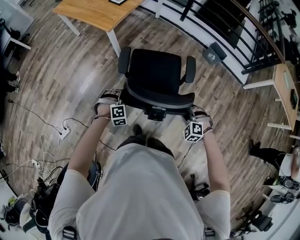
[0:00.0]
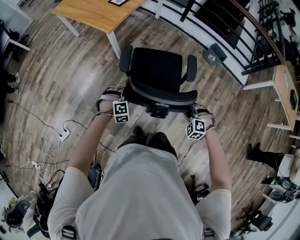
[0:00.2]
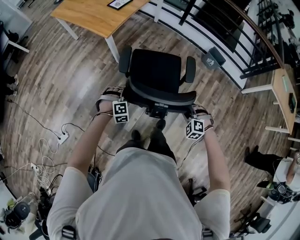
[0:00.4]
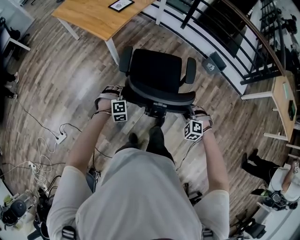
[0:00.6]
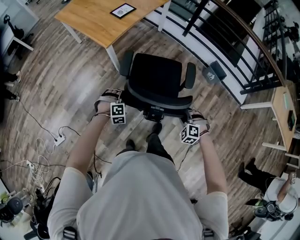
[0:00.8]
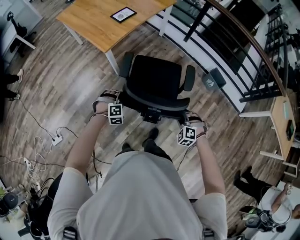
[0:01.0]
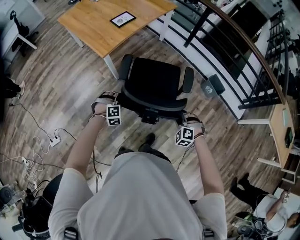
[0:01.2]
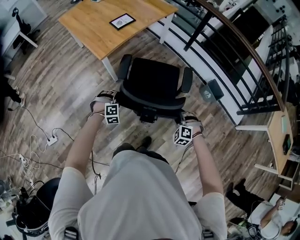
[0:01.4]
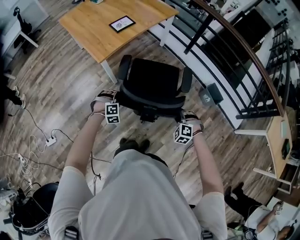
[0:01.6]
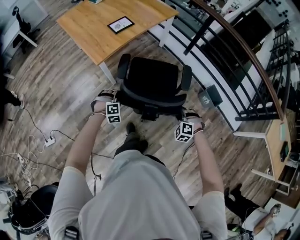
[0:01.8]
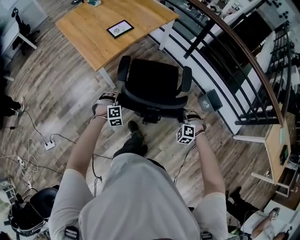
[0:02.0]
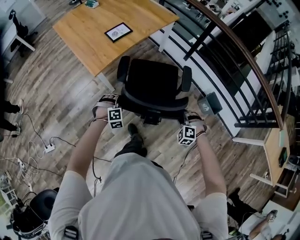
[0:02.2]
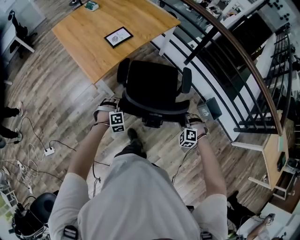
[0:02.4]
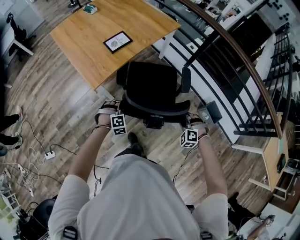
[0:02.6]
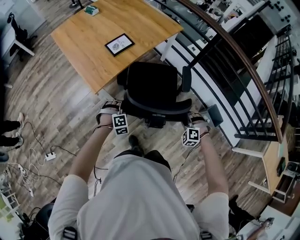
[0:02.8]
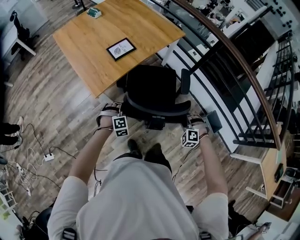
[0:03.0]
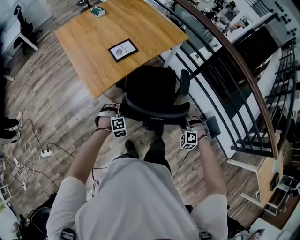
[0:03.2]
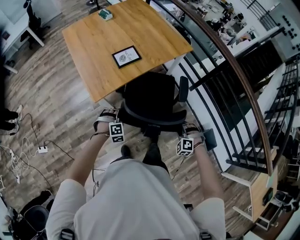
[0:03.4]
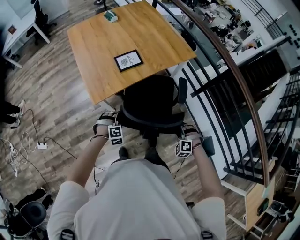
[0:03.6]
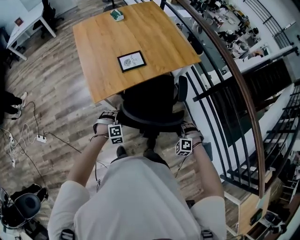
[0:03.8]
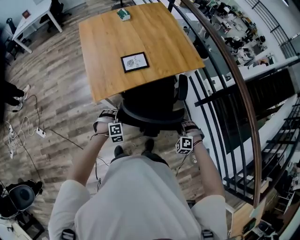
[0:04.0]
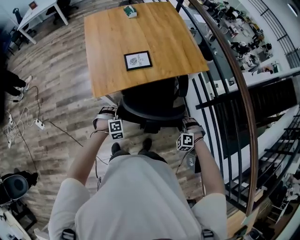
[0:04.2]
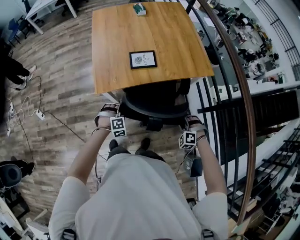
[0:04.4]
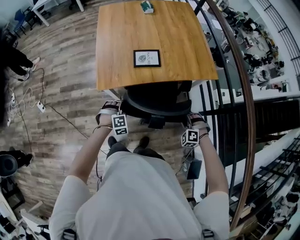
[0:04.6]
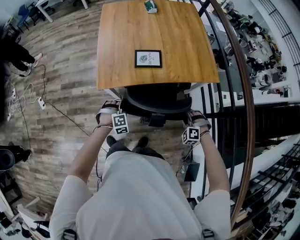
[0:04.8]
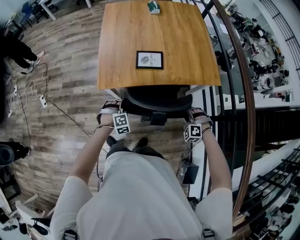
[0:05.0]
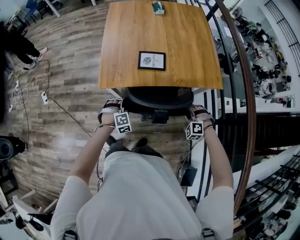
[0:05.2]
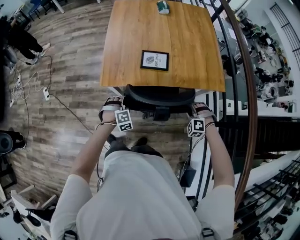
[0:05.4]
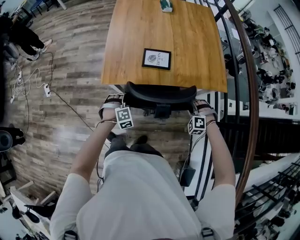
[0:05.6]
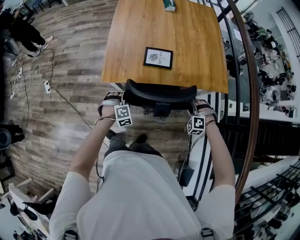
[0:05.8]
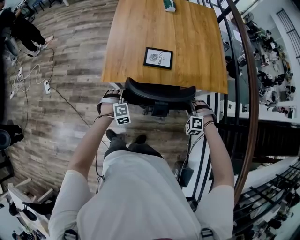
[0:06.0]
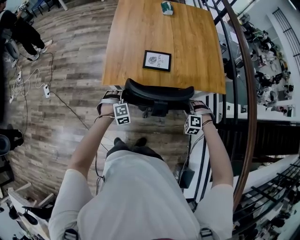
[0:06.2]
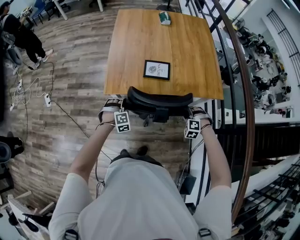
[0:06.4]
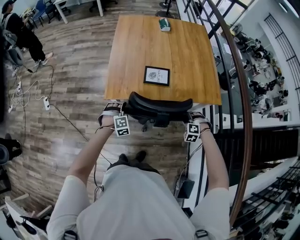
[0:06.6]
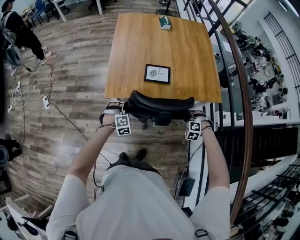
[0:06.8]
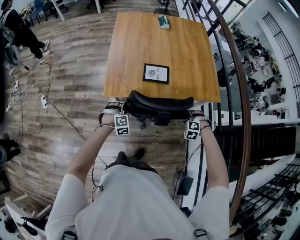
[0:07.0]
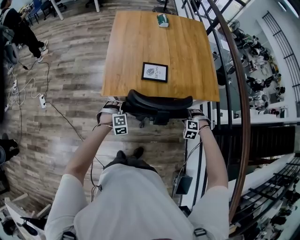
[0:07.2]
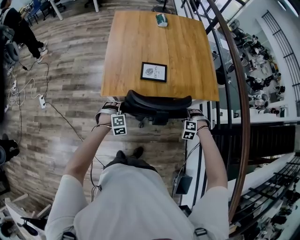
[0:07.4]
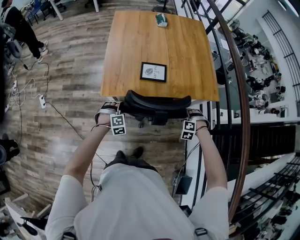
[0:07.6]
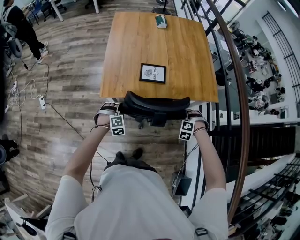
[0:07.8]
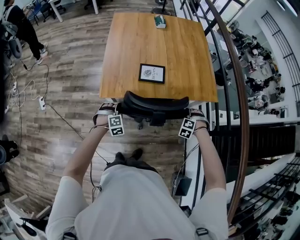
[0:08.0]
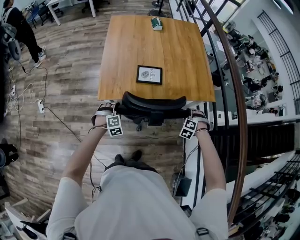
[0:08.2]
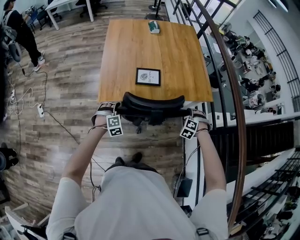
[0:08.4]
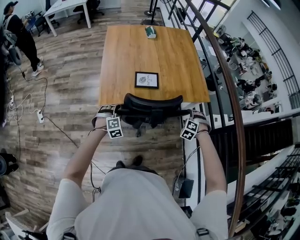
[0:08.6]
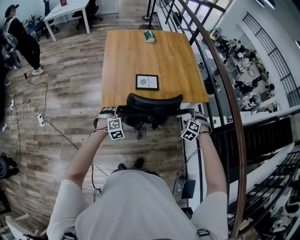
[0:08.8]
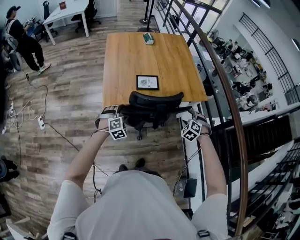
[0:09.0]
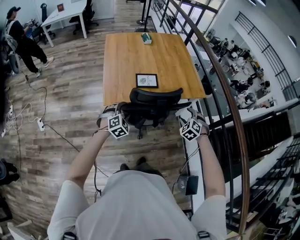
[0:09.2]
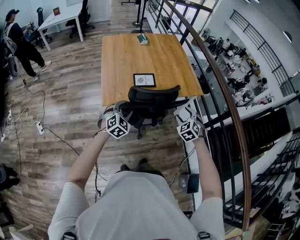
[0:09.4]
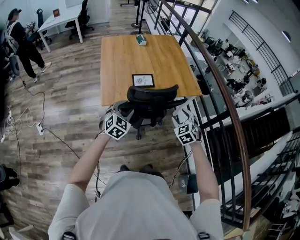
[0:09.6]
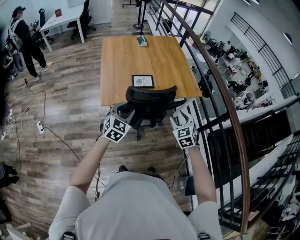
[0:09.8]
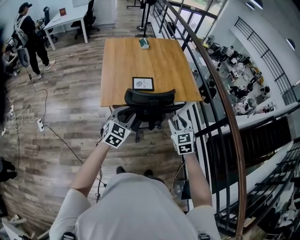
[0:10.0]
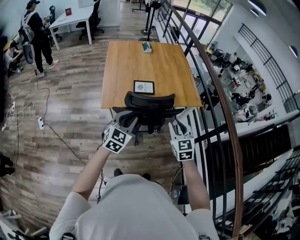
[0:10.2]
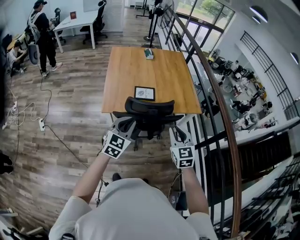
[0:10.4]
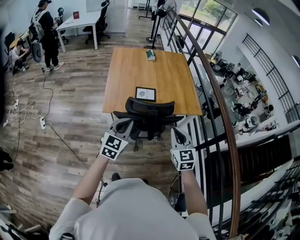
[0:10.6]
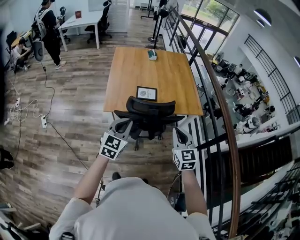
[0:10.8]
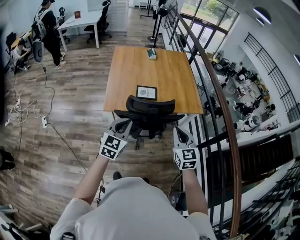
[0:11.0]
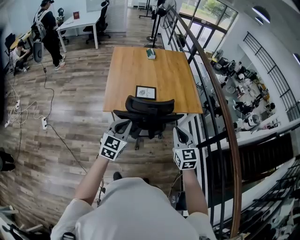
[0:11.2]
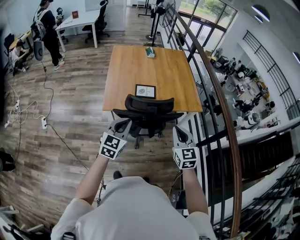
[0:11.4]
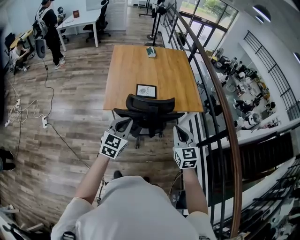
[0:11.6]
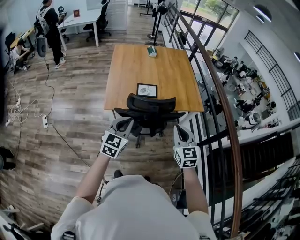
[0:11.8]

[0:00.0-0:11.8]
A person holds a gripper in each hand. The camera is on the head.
0:00.0 to 0:01.4: Both grippers move forward and to the right, about 30 cm.
0:01.4 to 0:03.0: The two grippers go about 30 cm forward.
0:03.0 to 0:04.4: The right gripper ends up roughly 25 cm from where it was, and swivels some 30 degrees, while the left gripper moves some 10 cm, and rotates about 30 degrees.
0:04.4 to 0:06.0: The left gripper shifts approximately 5 cm forward. Meanwhile the right gripper shifts roughly 15 cm forward.
0:06.0 to 0:07.4: The right gripper opens. Meanwhile the left gripper opens up.
0:07.4 to 0:08.8: The two grippers go about 10 cm upward. The right gripper changes its angle by some 30 degrees.
0:08.8 to 0:10.4: The left gripper is displaced upward, backward and to the right by about 25 cm, points its fingers roughly 40 degrees further upward, and closes up; the right gripper moves upward and backward, approximately 25 cm, tips its fingers upward by some 40 degrees, and closes.
0:10.4 to 0:11.8: The grippers move only a little.

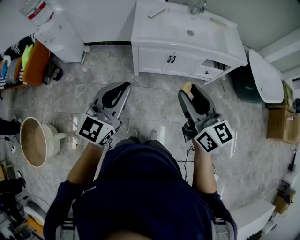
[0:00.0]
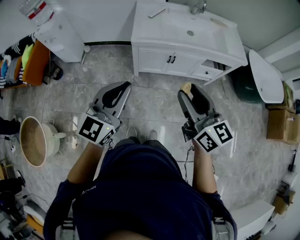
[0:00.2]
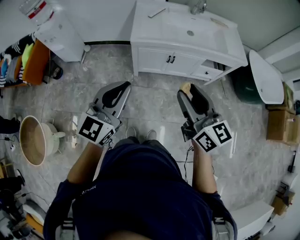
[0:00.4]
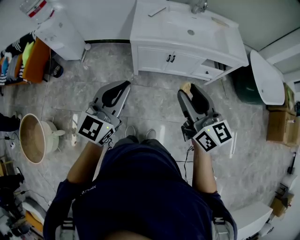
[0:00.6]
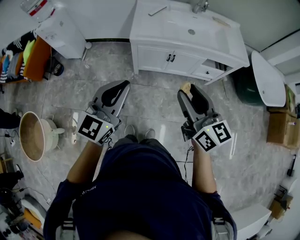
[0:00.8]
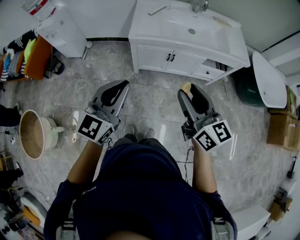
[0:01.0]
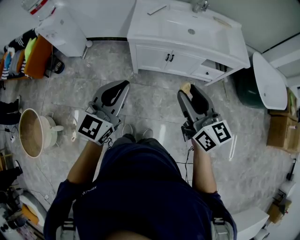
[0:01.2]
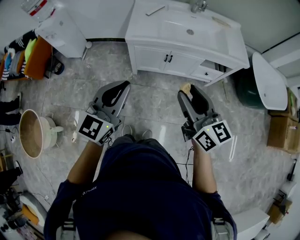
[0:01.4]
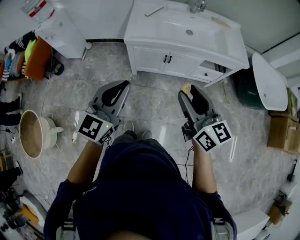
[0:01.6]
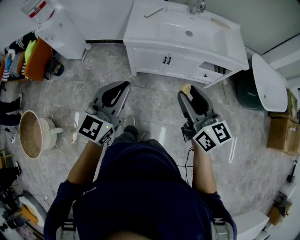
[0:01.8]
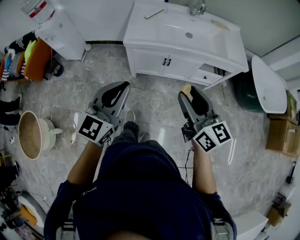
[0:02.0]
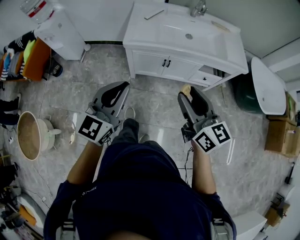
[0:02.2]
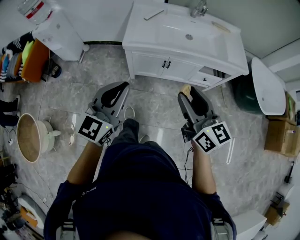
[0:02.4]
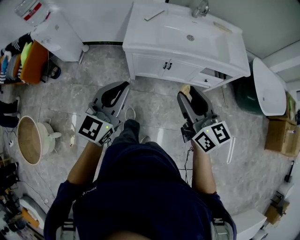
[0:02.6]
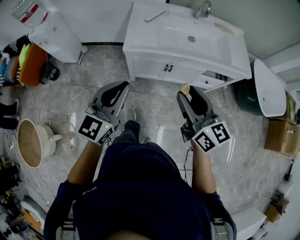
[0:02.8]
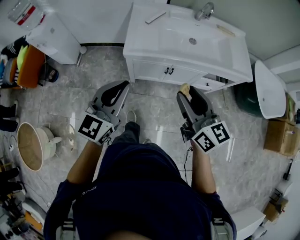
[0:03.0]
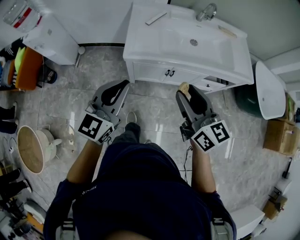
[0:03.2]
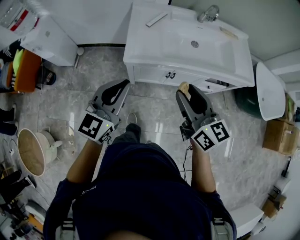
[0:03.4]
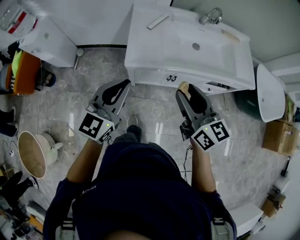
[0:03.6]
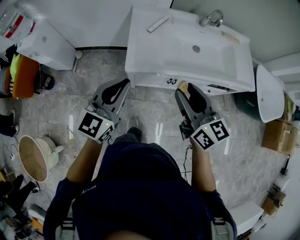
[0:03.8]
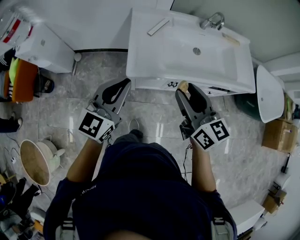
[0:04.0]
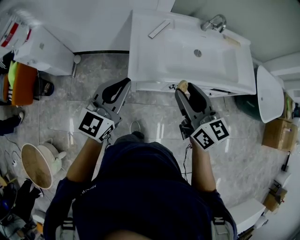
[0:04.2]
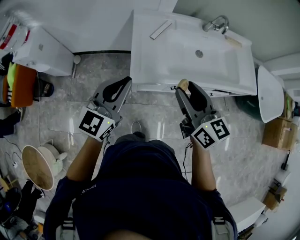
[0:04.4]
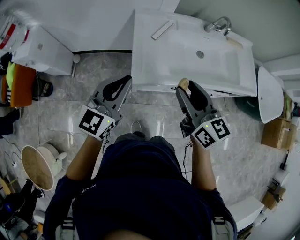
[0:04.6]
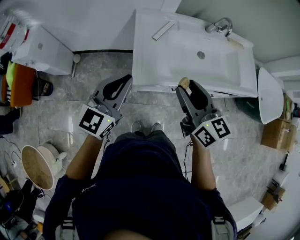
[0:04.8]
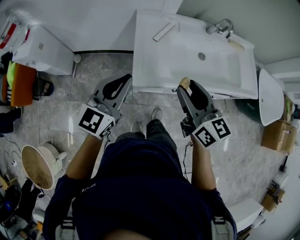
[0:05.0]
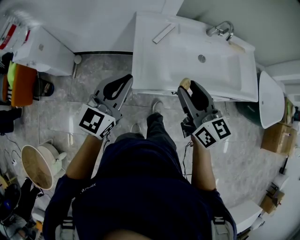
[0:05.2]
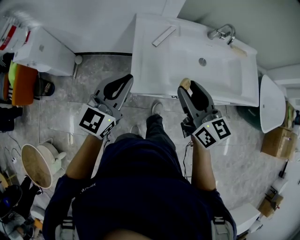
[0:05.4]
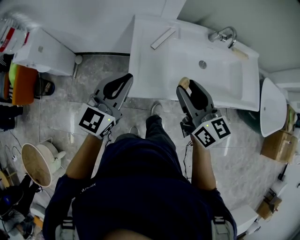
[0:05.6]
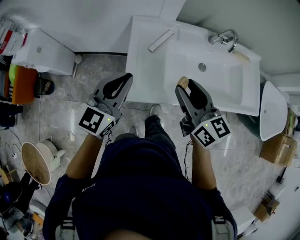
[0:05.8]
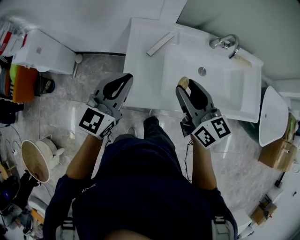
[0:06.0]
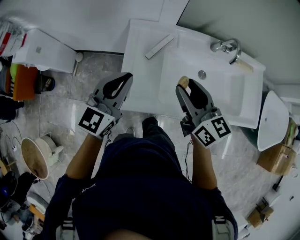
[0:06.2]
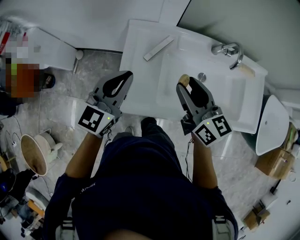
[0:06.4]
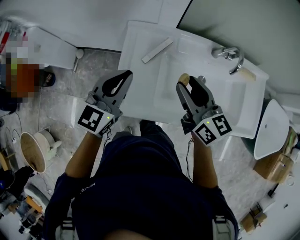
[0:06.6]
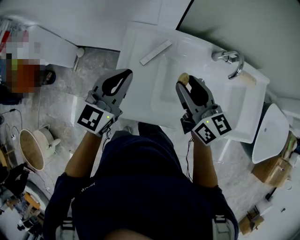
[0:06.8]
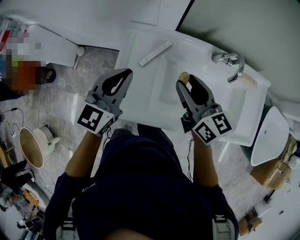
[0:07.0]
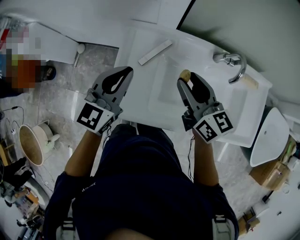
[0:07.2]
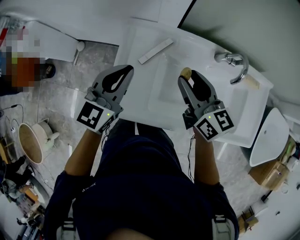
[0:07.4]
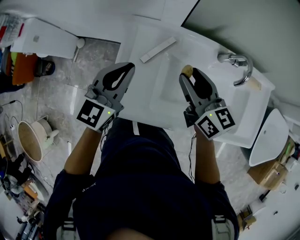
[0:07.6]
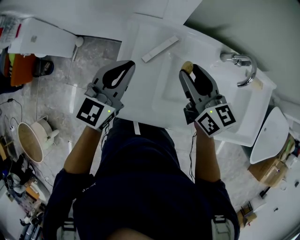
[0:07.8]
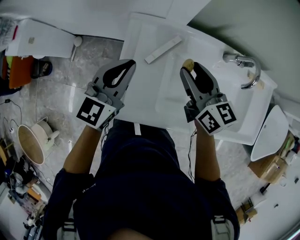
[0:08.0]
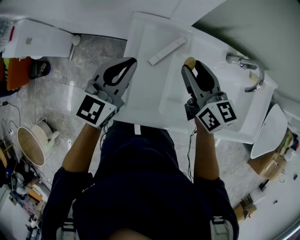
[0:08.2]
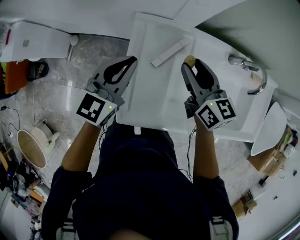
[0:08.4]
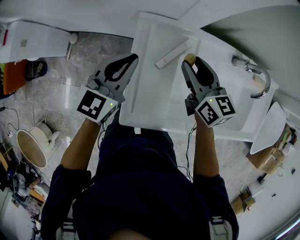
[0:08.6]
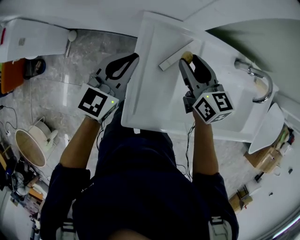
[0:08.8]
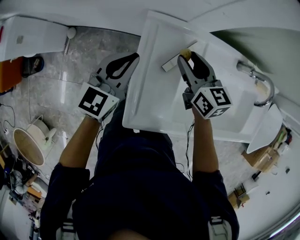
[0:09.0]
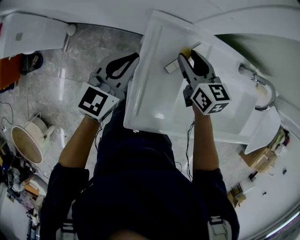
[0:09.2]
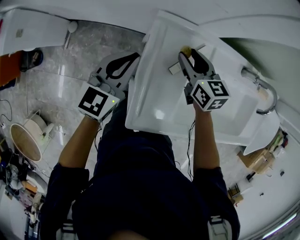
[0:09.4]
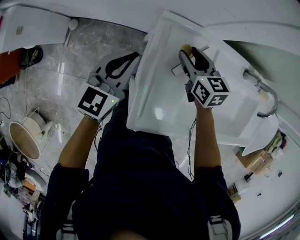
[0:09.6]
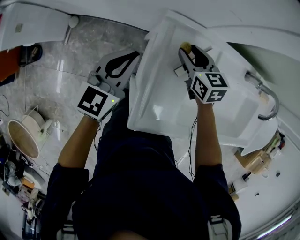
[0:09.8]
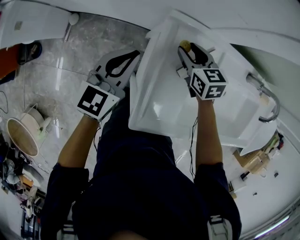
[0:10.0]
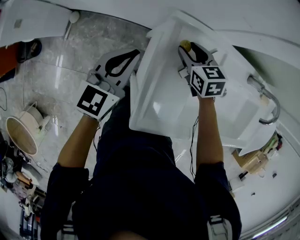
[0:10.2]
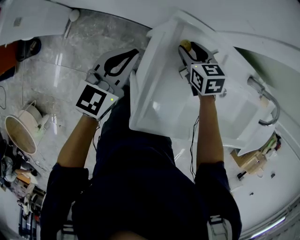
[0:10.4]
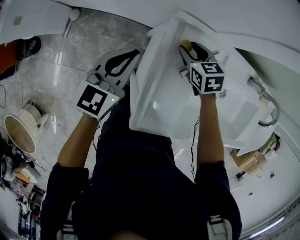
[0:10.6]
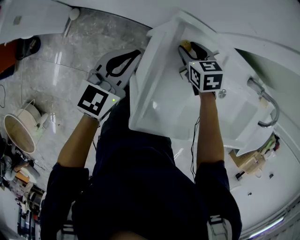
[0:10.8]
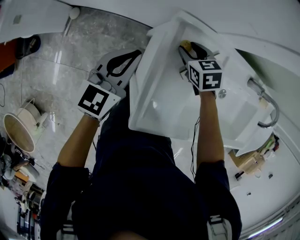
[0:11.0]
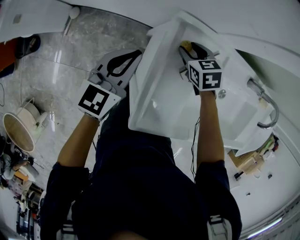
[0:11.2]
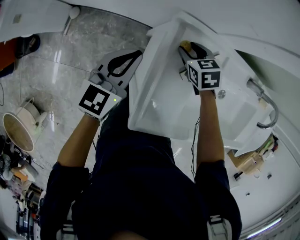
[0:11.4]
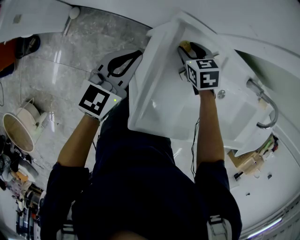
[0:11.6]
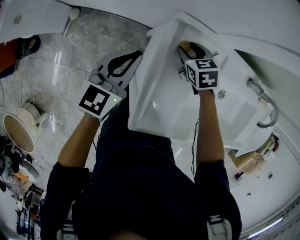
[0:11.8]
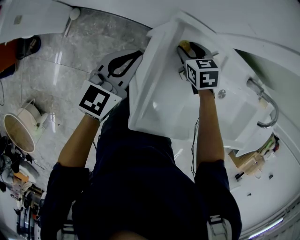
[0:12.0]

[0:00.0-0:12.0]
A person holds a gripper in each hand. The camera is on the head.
0:00.0 to 0:01.6: The grippers both shift to the right by roughly 10 cm.
0:01.6 to 0:03.0: The grippers both shift forward by about 15 cm.
0:03.0 to 0:04.4: The grippers both shift forward and to the left by roughly 20 cm.
0:04.4 to 0:06.0: Both grippers move forward, about 15 cm.
0:06.0 to 0:07.6: The right gripper travels forward by roughly 15 cm. The left gripper travels forward and to the right by approximately 15 cm.
0:07.6 to 0:09.0: The grippers both shift to the left, downward and forward by some 20 cm.
0:09.0 to 0:10.4: The left gripper goes approximately 10 cm to the left and downward, while the right gripper heads downward and to the left, covering some 15 cm, and swivels about 30 degrees.
0:10.4 to 0:12.0: The grippers move only a little.
